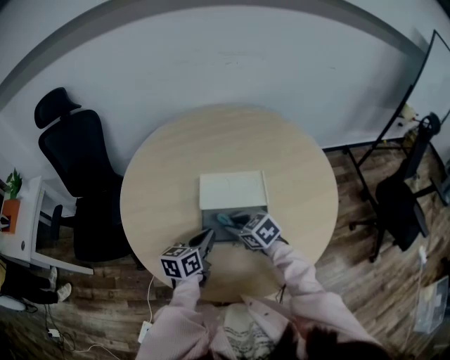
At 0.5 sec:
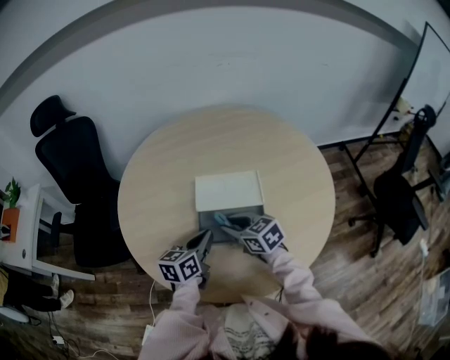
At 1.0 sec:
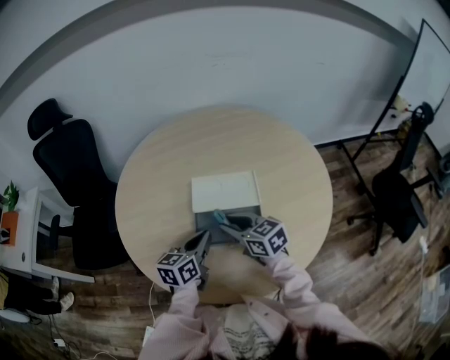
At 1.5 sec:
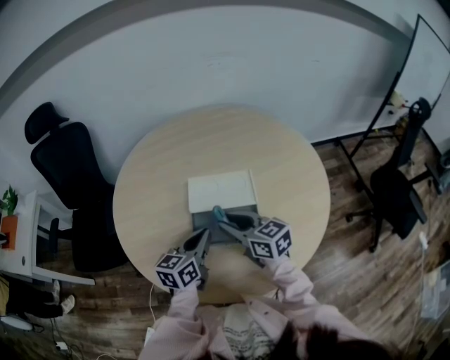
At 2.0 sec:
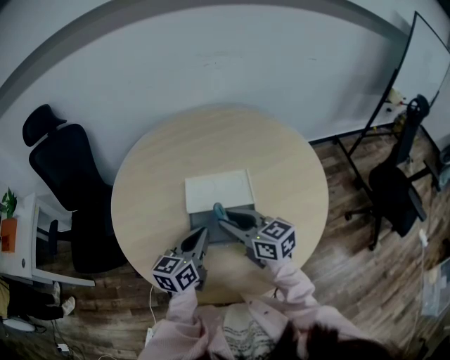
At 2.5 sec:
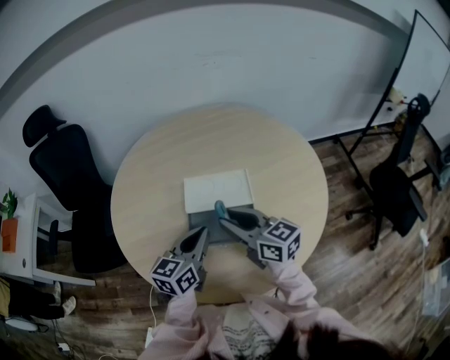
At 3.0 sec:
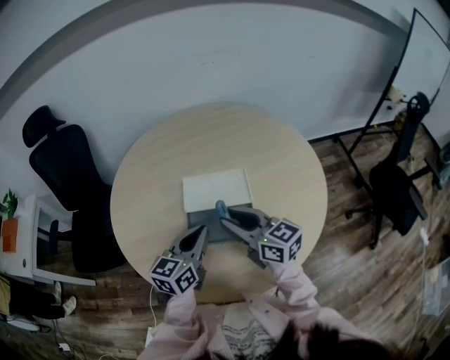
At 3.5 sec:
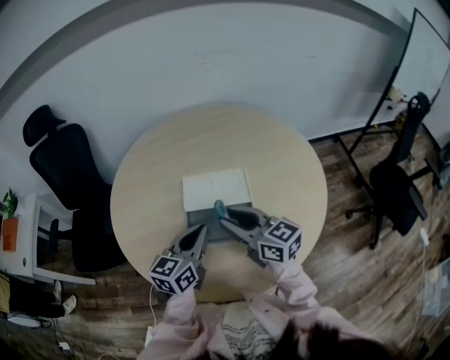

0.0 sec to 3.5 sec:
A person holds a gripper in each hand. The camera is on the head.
0.0 sec to 2.0 sec: The right gripper shifts roughly 10 cm upward, and tilts its fingers some 30 degrees upward. The left gripper goes roughly 5 cm upward.
2.0 sec to 3.5 sec: The grippers stay close to where they were, moving slightly.

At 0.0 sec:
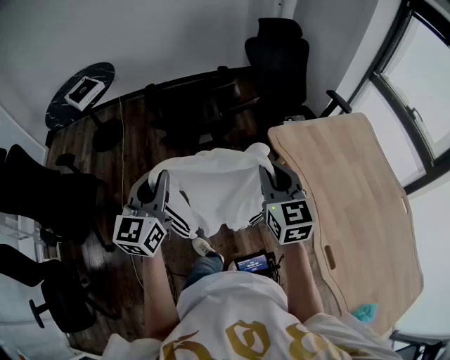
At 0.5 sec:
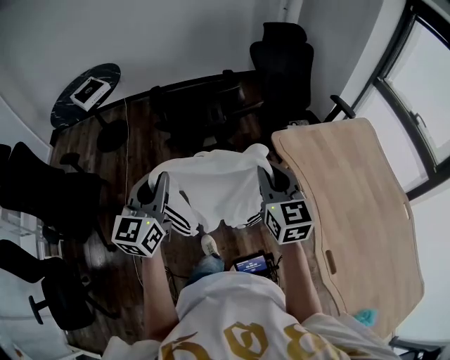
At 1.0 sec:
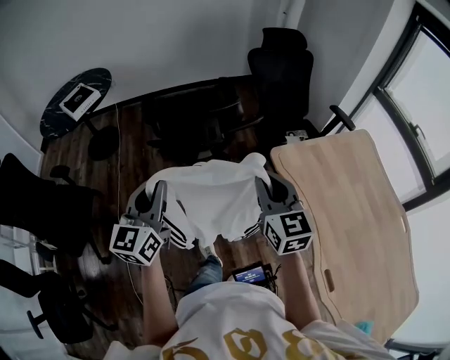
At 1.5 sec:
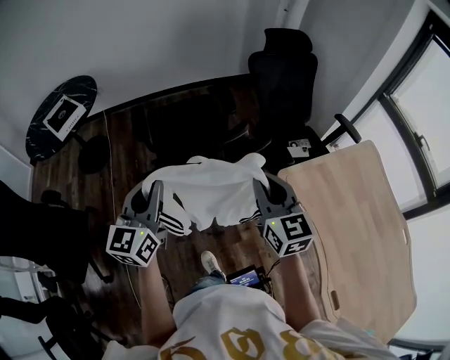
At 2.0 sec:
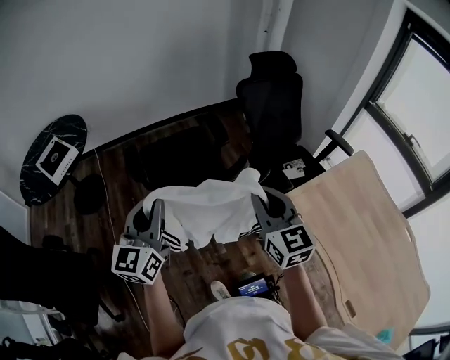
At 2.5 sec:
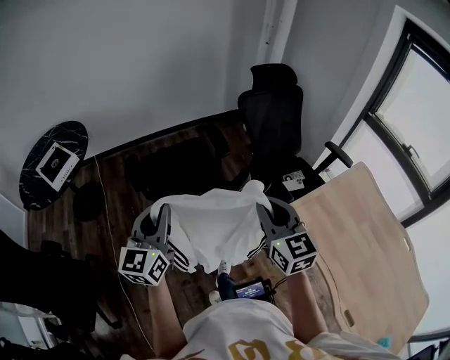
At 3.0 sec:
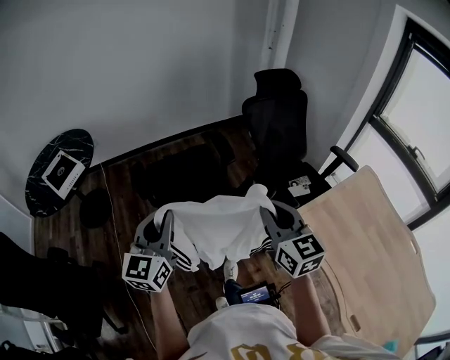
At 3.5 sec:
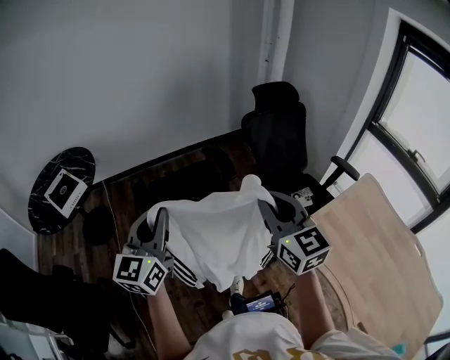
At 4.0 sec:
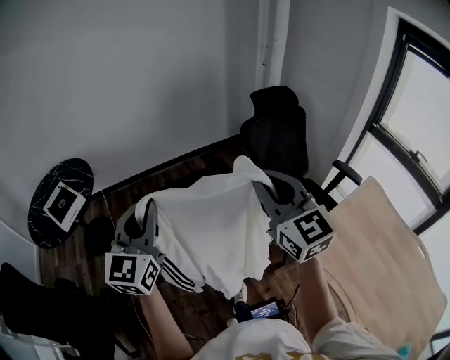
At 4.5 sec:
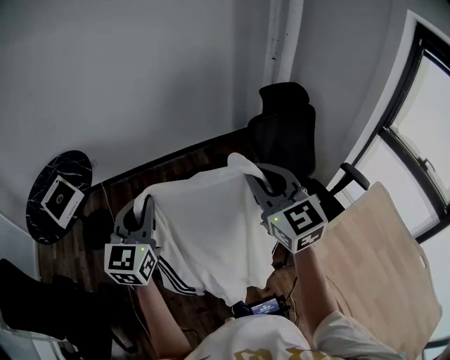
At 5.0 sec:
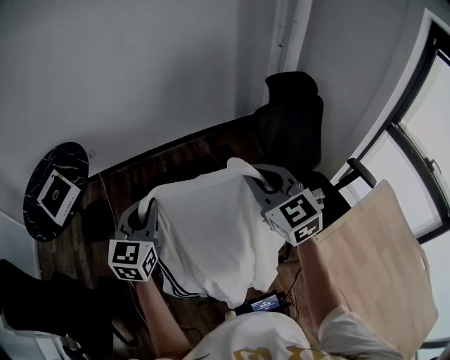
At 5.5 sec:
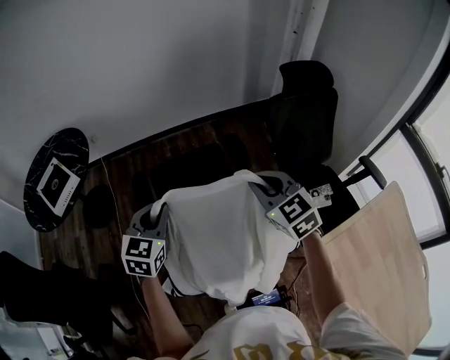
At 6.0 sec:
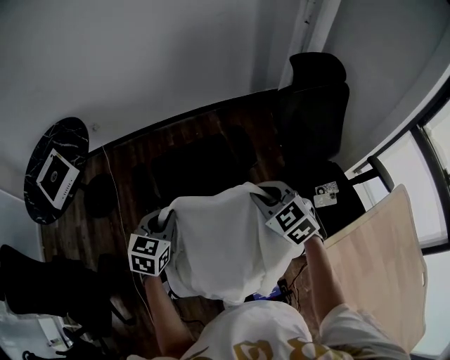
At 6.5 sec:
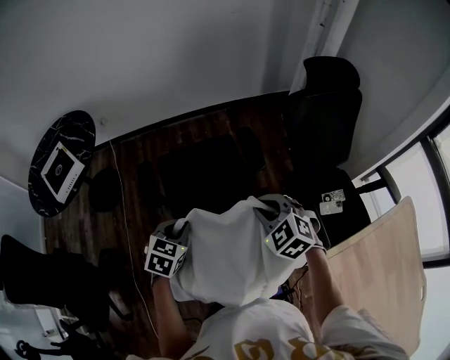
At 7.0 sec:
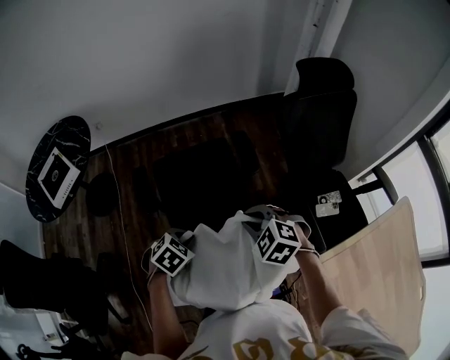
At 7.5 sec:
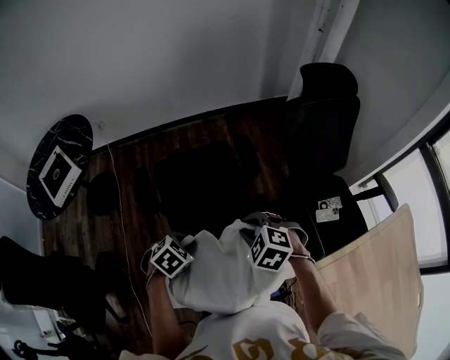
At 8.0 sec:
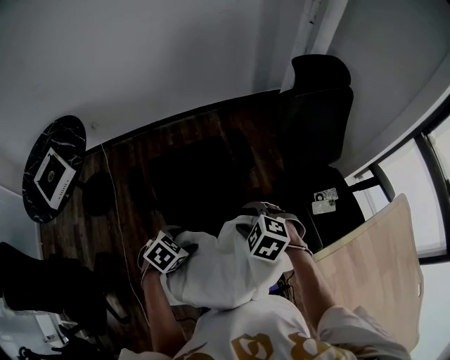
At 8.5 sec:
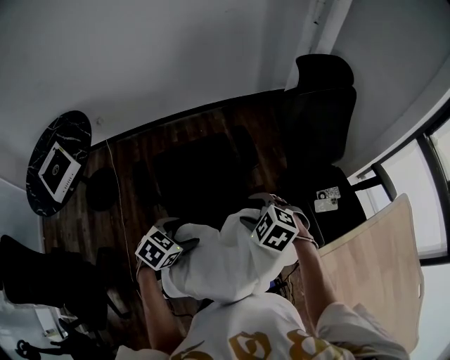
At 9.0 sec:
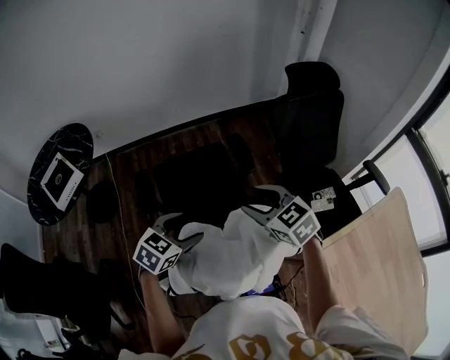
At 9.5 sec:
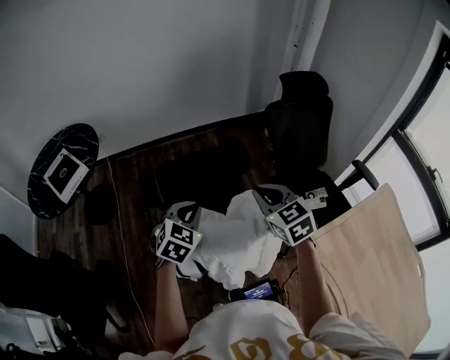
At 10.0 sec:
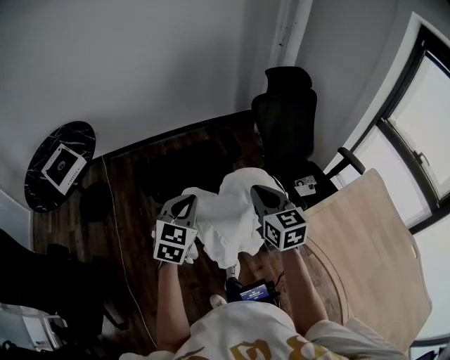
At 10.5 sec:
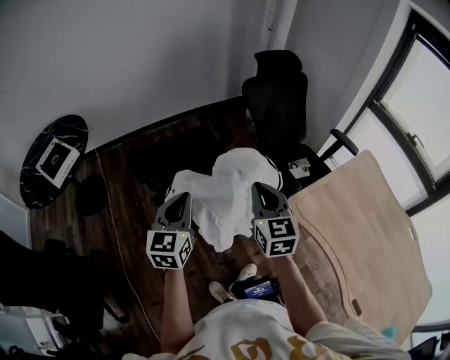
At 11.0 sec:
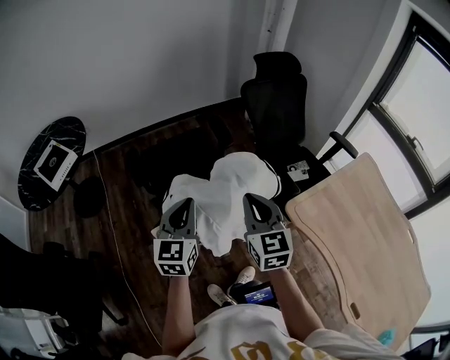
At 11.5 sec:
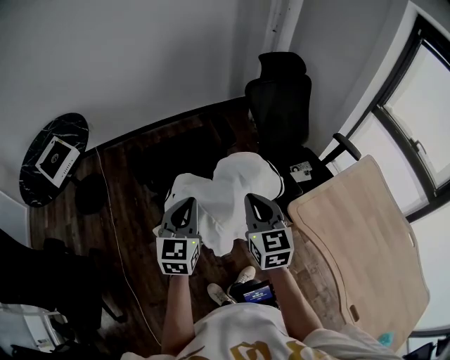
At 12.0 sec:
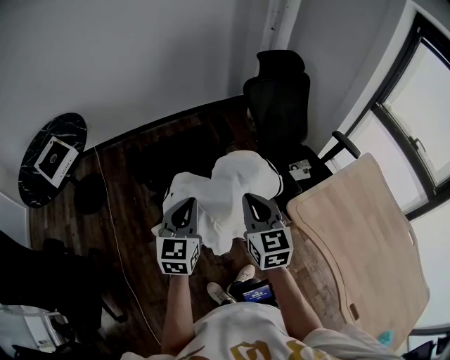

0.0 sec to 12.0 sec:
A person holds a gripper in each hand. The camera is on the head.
0.0 sec to 2.0 sec: The grippers both shift forward by approximately 30 cm.
2.0 sec to 4.0 sec: The right gripper heads upward and forward, covering approximately 20 cm; the left gripper travels forward and upward by approximately 15 cm.
4.0 sec to 6.0 sec: The grippers both shift downward and forward by about 30 cm. The right gripper points its fingers some 40 degrees further downward. Meanwhile the left gripper angles its fingers downward, by roughly 40 degrees.
6.0 sec to 8.0 sec: The right gripper moves downward, about 10 cm, swivels approximately 30 degrees, and opens its fingers, while the left gripper moves downward, to the right and backward, about 15 cm, changes its angle by about 40 degrees, and opens.
8.0 sec to 10.0 sec: Both grippers travel together upward and backward, some 20 cm. The left gripper tips its fingers upward by roughly 40 degrees, and closes up. Meanwhile the right gripper angles its fingers upward, by roughly 40 degrees, and closes.
10.0 sec to 12.0 sec: The left gripper shifts by roughly 5 cm, while the right gripper shifts about 5 cm backward.

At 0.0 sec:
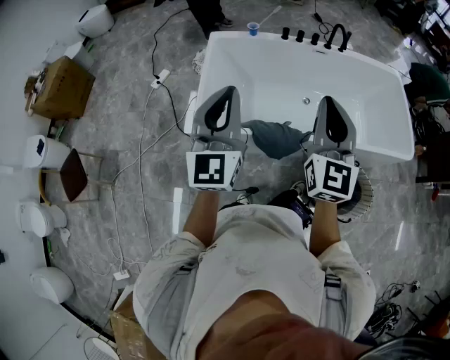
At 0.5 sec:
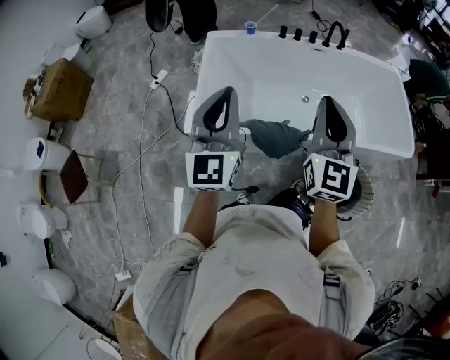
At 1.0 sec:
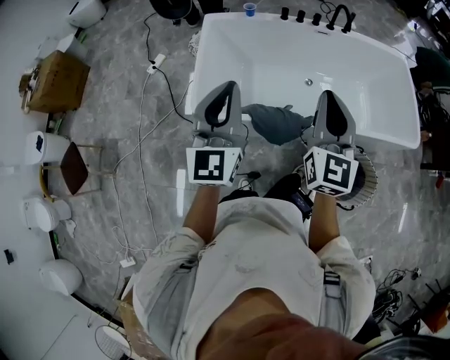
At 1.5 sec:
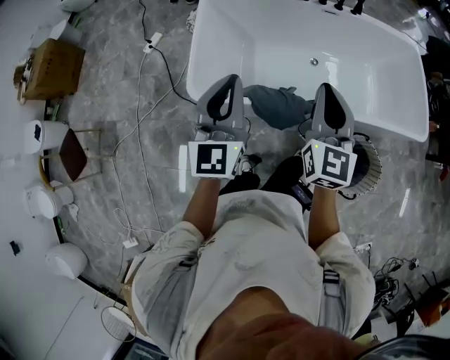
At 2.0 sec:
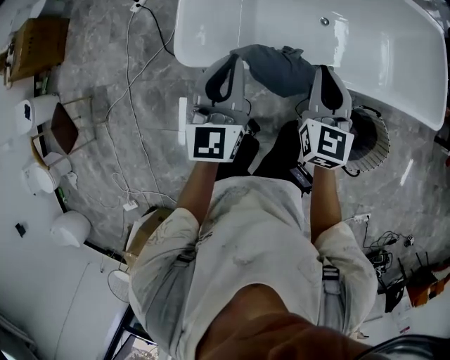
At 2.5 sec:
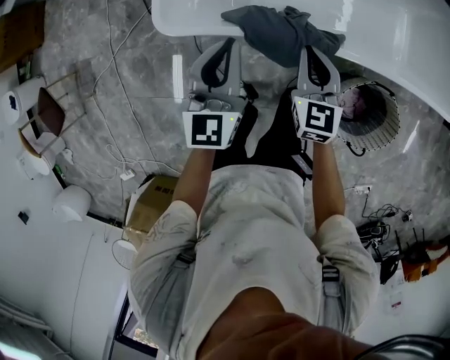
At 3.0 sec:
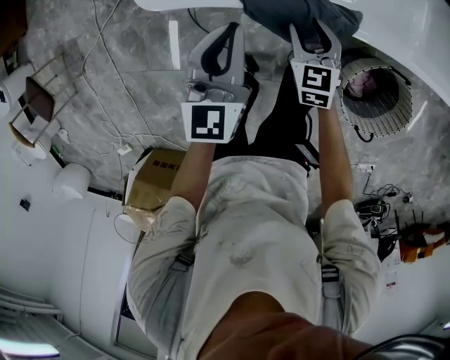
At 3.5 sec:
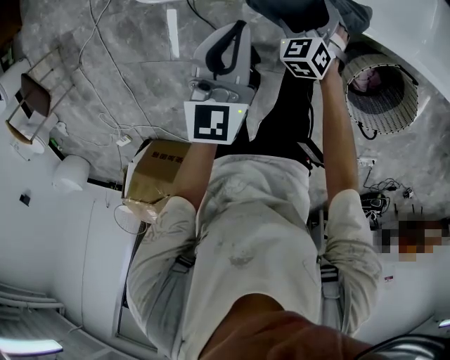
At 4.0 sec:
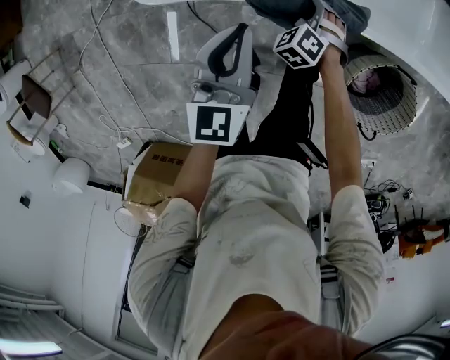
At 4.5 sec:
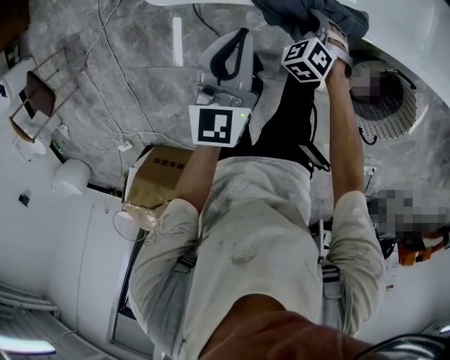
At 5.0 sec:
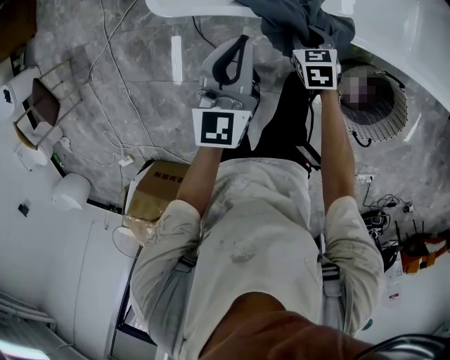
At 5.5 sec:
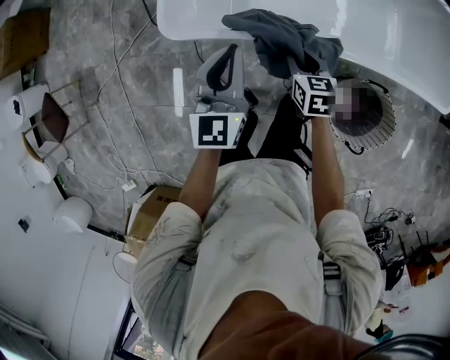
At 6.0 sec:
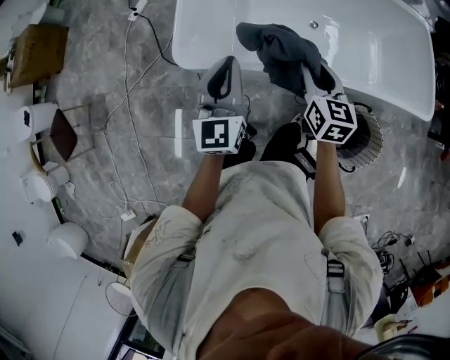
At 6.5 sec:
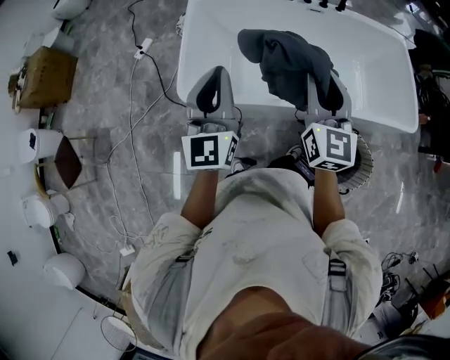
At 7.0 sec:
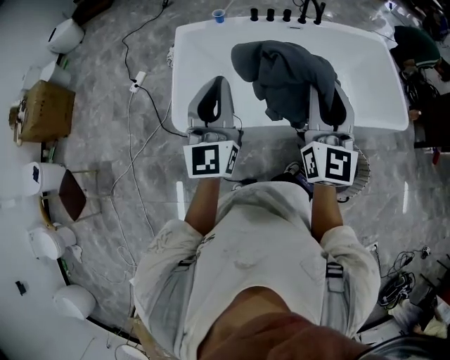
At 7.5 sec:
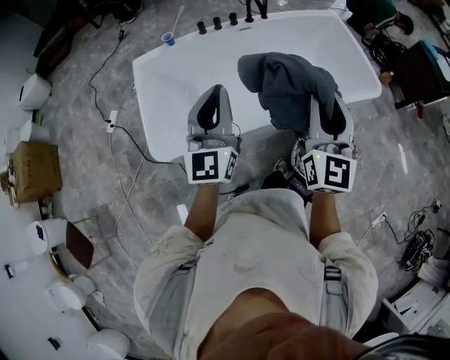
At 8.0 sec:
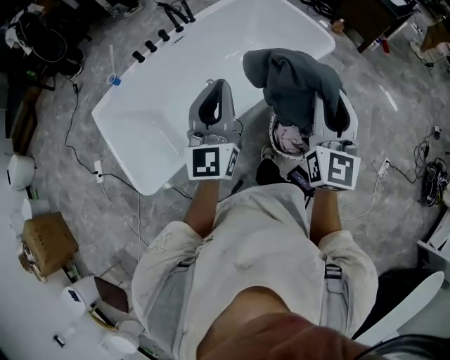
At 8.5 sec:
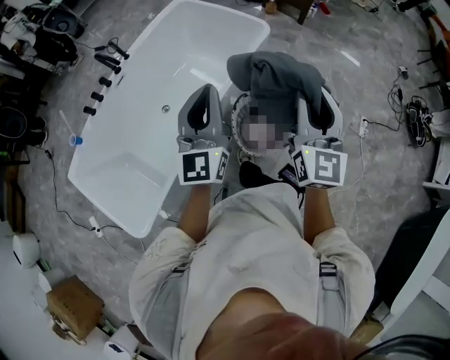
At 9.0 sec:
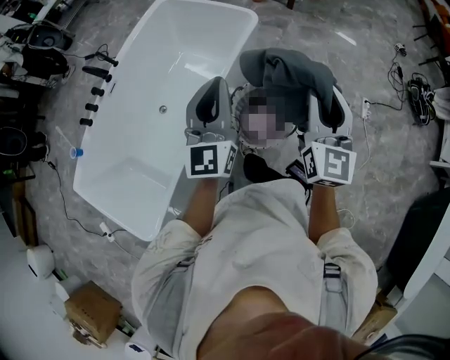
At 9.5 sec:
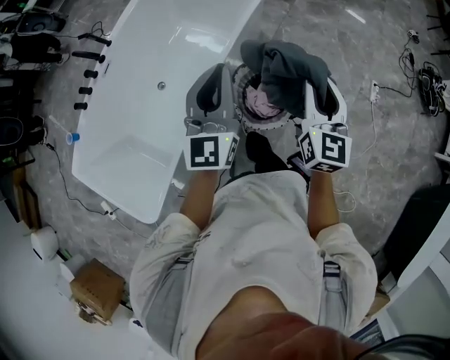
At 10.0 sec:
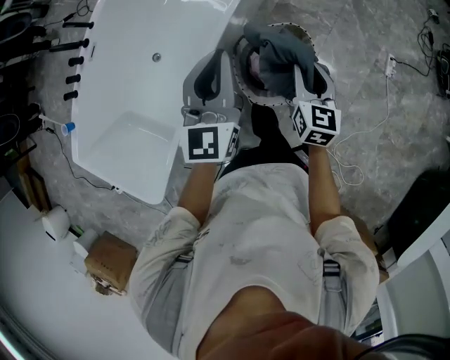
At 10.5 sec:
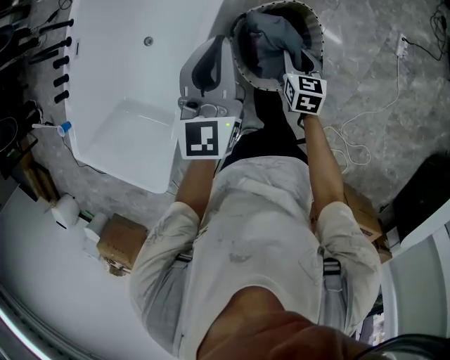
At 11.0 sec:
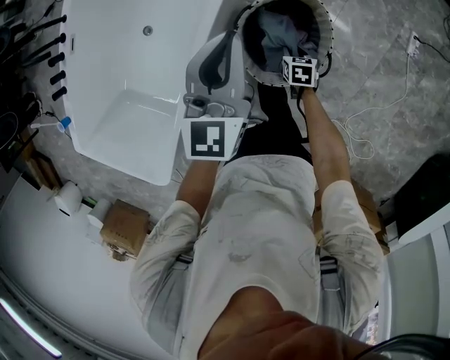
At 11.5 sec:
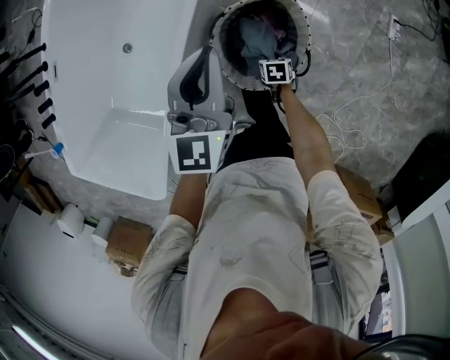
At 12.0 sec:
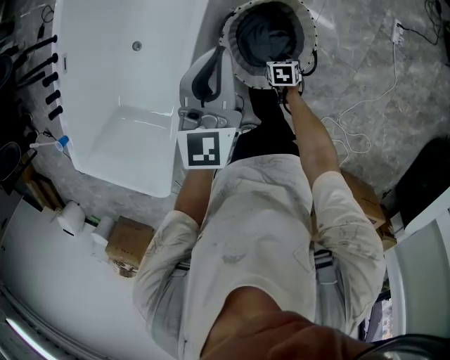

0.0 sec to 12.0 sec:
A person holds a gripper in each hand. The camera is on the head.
0.0 sec to 2.0 sec: Both grippers move downward, some 20 cm. The right gripper turns by about 20 degrees.
2.0 sec to 4.0 sec: The left gripper goes roughly 20 cm downward. The right gripper travels downward by roughly 40 cm, tips its fingers downward by about 40 degrees, and opens.
4.0 sec to 6.0 sec: The right gripper moves upward, about 35 cm, rotates around the line of its fingers by some 60 degrees, clockwise from behind, and closes up, while the left gripper shifts roughly 20 cm upward.
6.0 sec to 8.0 sec: The right gripper ends up approximately 40 cm from where it was, and rotates some 60 degrees. The left gripper changes place by approximately 35 cm, and turns by about 50 degrees.
8.0 sec to 10.0 sec: The right gripper is displaced downward and to the right by some 35 cm, and points its fingers roughly 30 degrees further downward. Meanwhile the left gripper moves forward, to the right and downward, about 30 cm, and changes its angle by roughly 30 degrees.
10.0 sec to 12.0 sec: The right gripper goes some 40 cm downward, and tips its fingers downward by roughly 50 degrees. The left gripper moves downward, about 10 cm.
